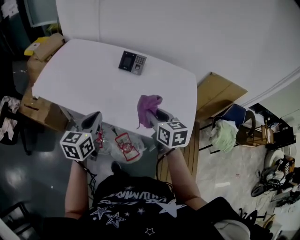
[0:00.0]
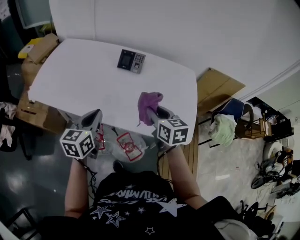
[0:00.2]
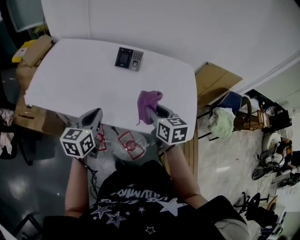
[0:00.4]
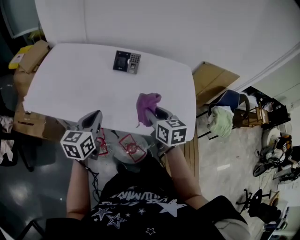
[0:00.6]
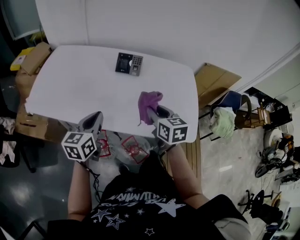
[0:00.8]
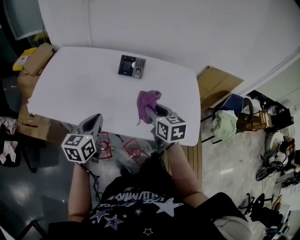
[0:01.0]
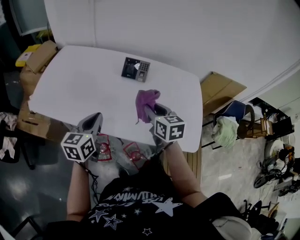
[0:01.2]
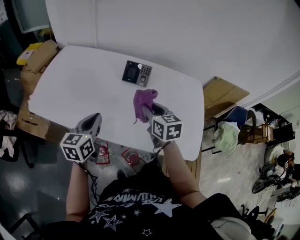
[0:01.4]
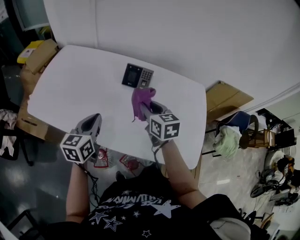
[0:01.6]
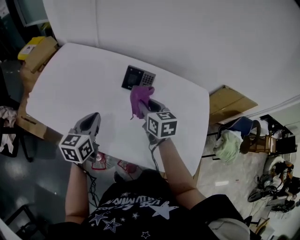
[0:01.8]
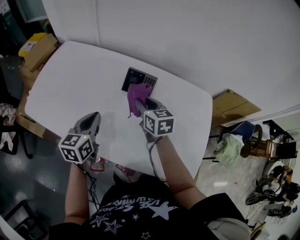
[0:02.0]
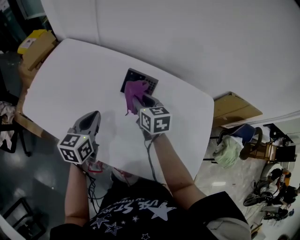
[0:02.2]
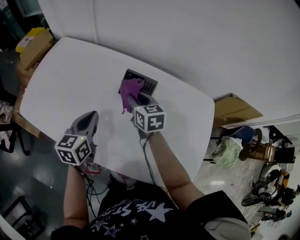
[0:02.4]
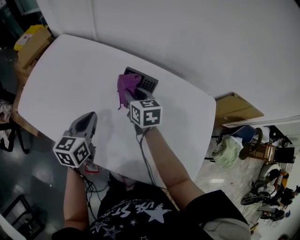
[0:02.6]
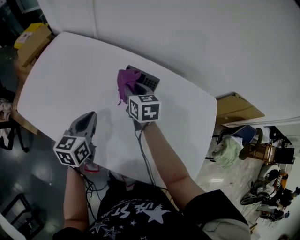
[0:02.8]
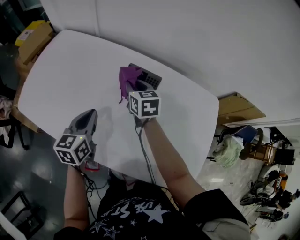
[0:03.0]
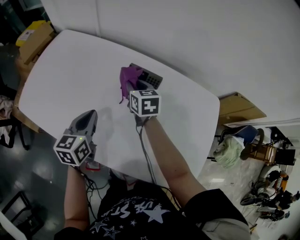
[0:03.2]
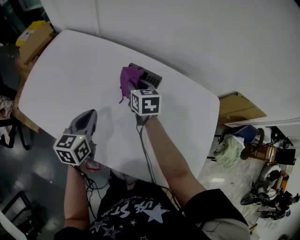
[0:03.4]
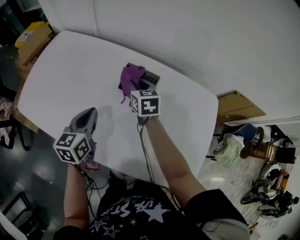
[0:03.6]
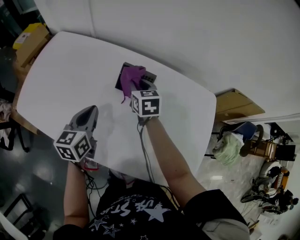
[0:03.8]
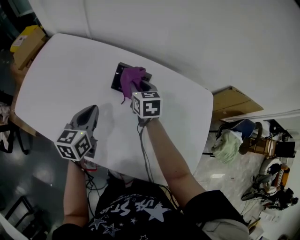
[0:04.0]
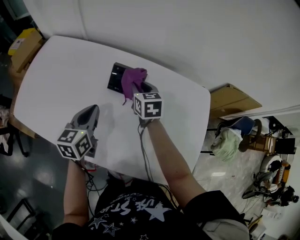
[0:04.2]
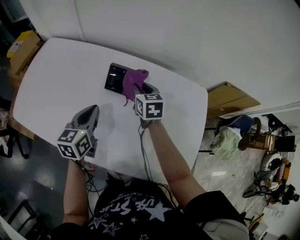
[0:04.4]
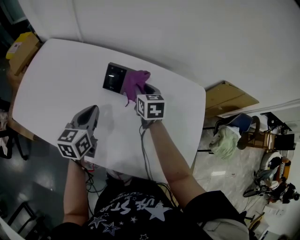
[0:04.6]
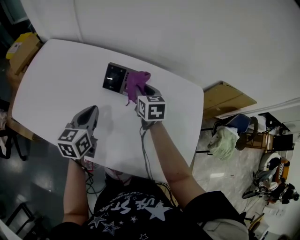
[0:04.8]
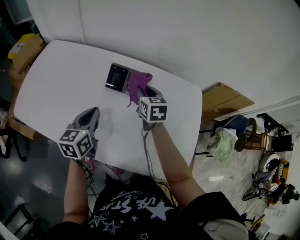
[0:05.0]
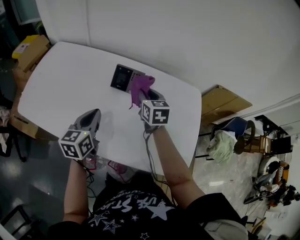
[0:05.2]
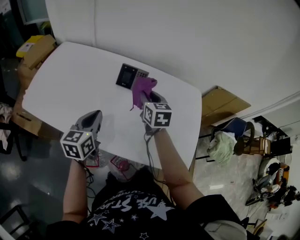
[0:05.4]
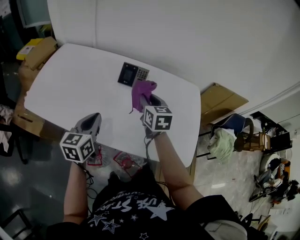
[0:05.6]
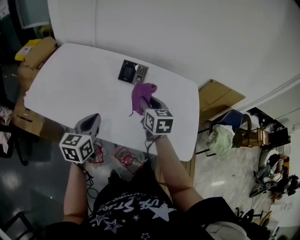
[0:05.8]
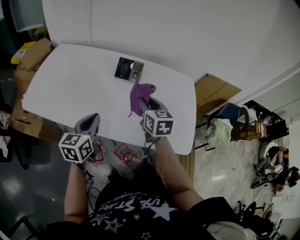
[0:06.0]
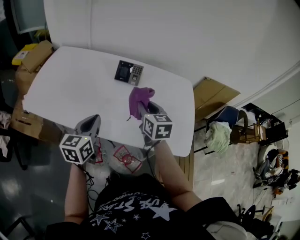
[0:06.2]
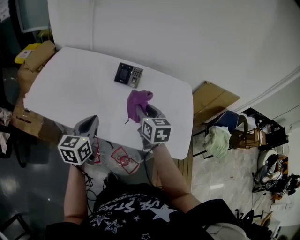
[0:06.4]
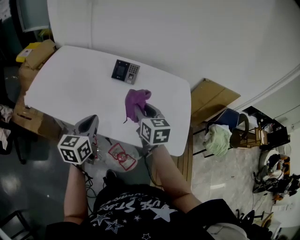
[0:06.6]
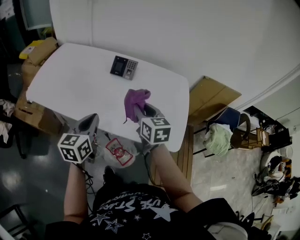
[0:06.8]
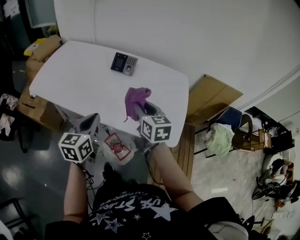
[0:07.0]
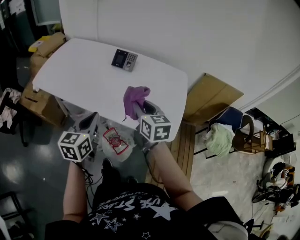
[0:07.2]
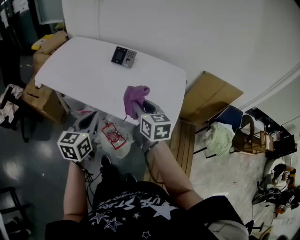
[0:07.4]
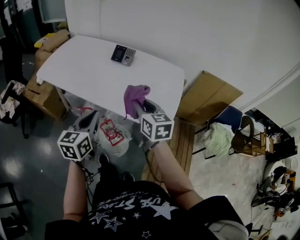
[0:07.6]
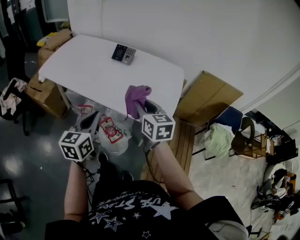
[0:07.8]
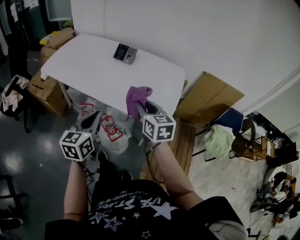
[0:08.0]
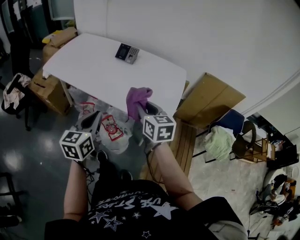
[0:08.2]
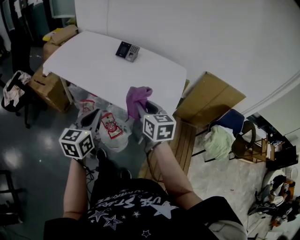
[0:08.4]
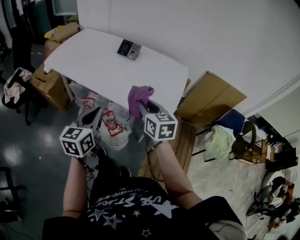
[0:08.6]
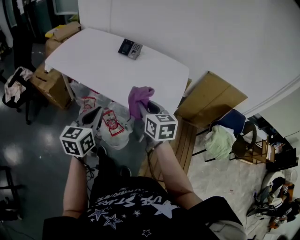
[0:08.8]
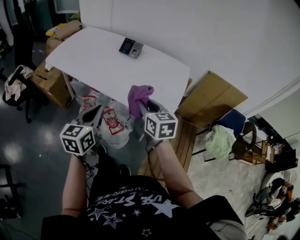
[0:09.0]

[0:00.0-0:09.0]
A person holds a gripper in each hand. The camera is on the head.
0:00.0 to 0:01.6: The right gripper travels forward and to the left by approximately 20 cm. The left gripper travels forward by about 15 cm.
0:01.6 to 0:03.0: The left gripper shifts about 10 cm forward and downward, while the right gripper is displaced forward and downward by approximately 20 cm.
0:03.0 to 0:04.4: The right gripper goes some 10 cm to the right. The left gripper travels to the right by about 5 cm.
0:04.4 to 0:06.0: The left gripper moves backward, about 20 cm. Meanwhile the right gripper shifts roughly 25 cm backward and upward.
0:06.0 to 0:07.6: Both grippers travel together backward and to the right, about 25 cm.
0:07.6 to 0:09.0: Both grippers move backward, about 5 cm.

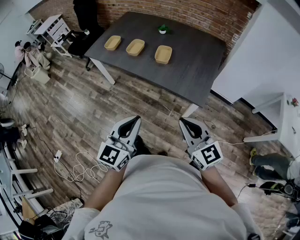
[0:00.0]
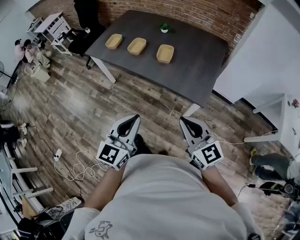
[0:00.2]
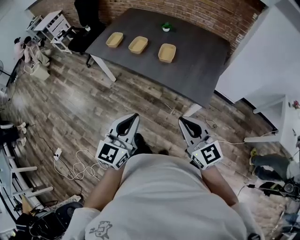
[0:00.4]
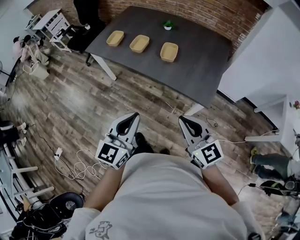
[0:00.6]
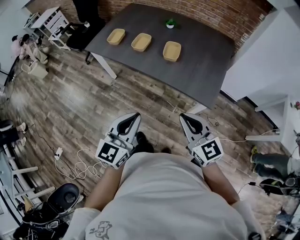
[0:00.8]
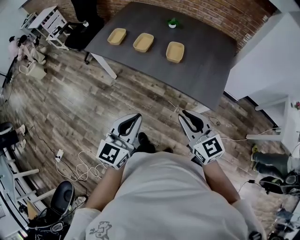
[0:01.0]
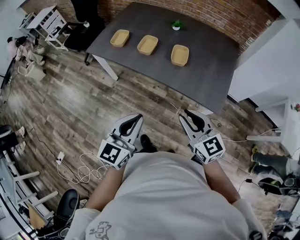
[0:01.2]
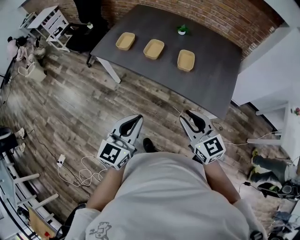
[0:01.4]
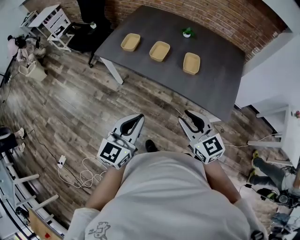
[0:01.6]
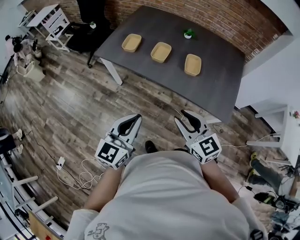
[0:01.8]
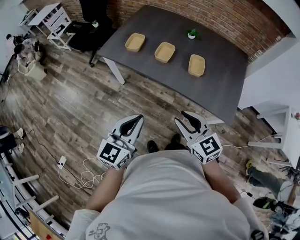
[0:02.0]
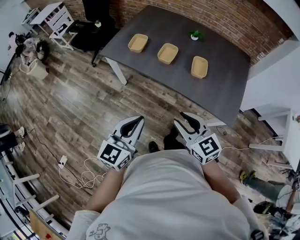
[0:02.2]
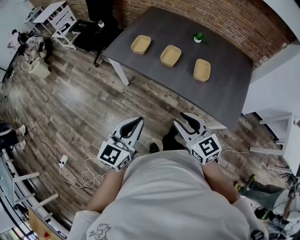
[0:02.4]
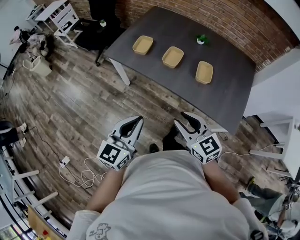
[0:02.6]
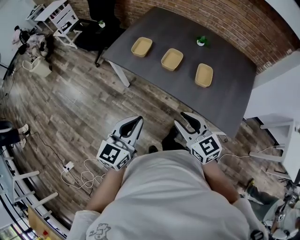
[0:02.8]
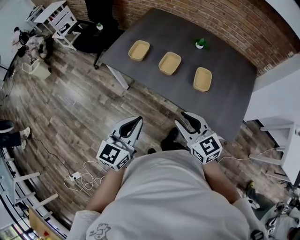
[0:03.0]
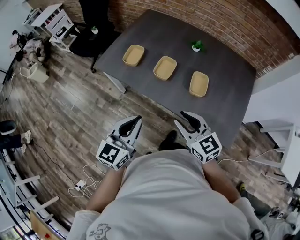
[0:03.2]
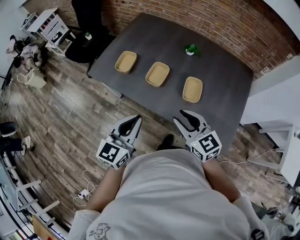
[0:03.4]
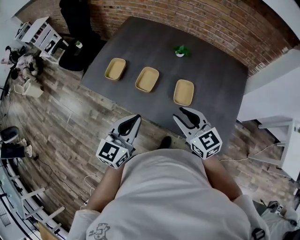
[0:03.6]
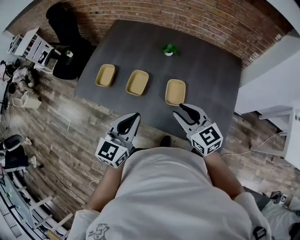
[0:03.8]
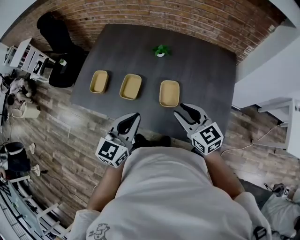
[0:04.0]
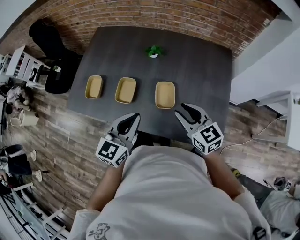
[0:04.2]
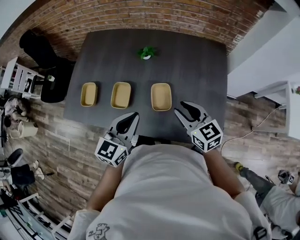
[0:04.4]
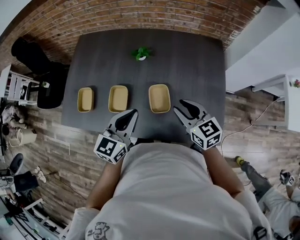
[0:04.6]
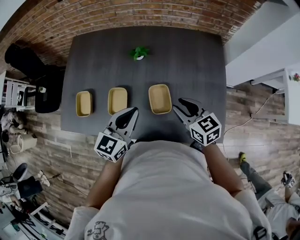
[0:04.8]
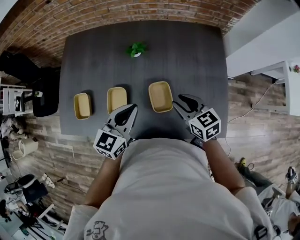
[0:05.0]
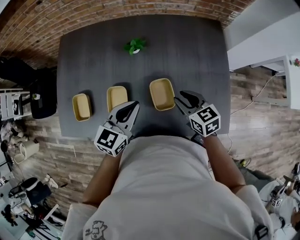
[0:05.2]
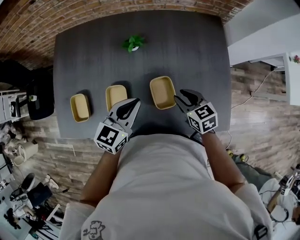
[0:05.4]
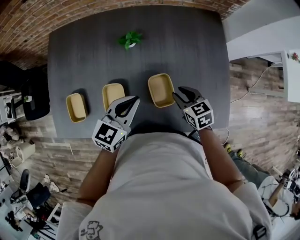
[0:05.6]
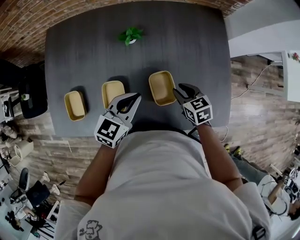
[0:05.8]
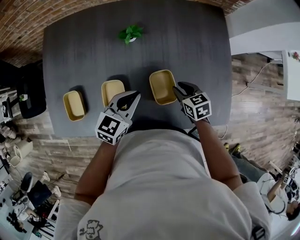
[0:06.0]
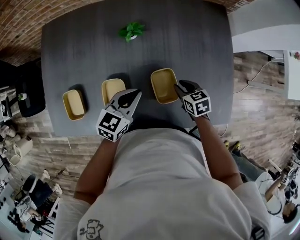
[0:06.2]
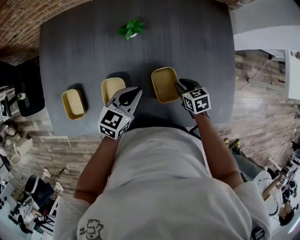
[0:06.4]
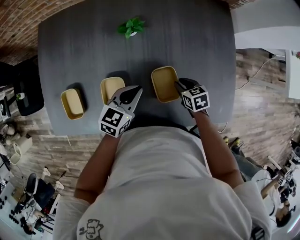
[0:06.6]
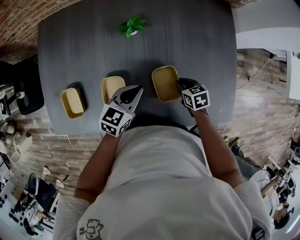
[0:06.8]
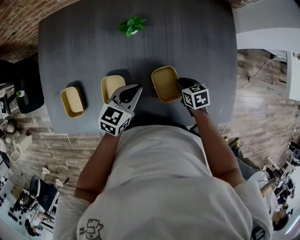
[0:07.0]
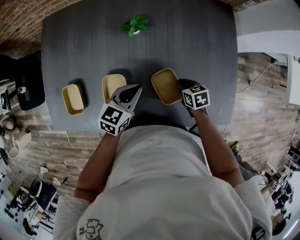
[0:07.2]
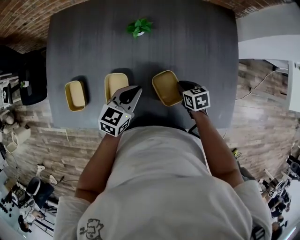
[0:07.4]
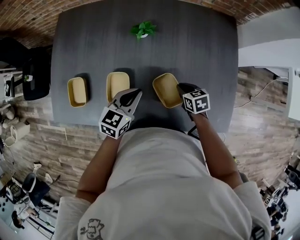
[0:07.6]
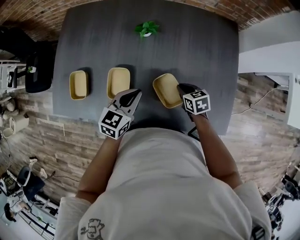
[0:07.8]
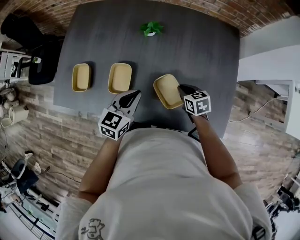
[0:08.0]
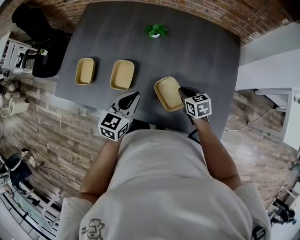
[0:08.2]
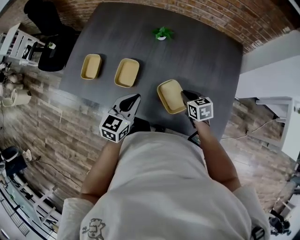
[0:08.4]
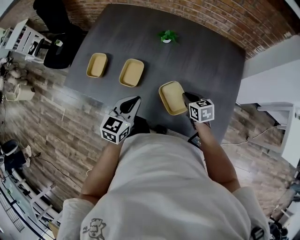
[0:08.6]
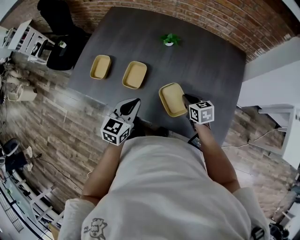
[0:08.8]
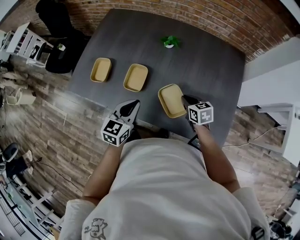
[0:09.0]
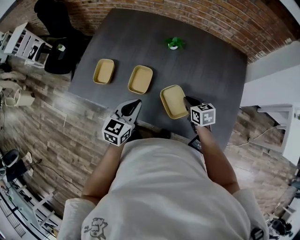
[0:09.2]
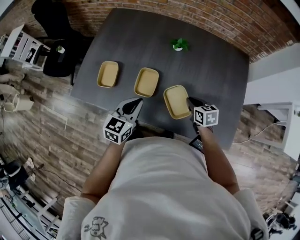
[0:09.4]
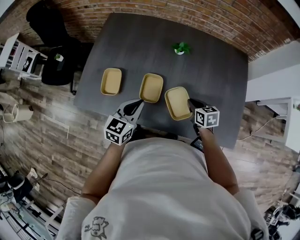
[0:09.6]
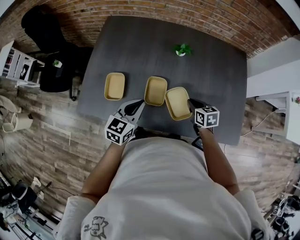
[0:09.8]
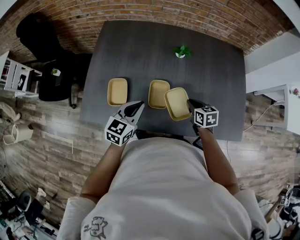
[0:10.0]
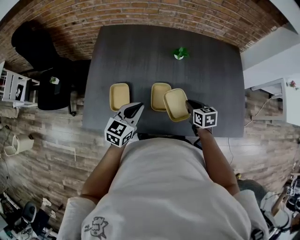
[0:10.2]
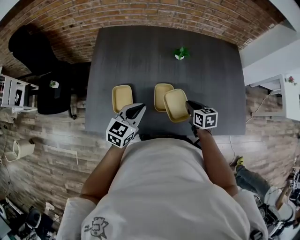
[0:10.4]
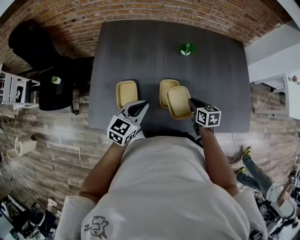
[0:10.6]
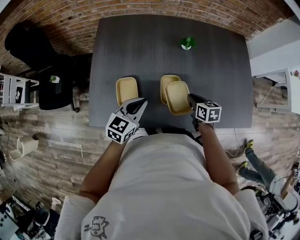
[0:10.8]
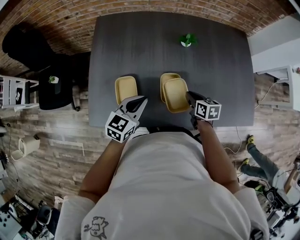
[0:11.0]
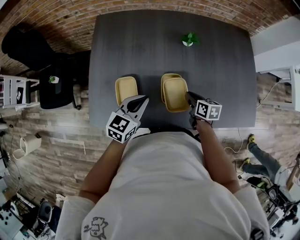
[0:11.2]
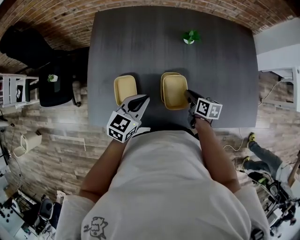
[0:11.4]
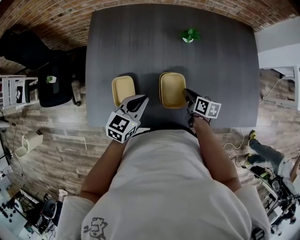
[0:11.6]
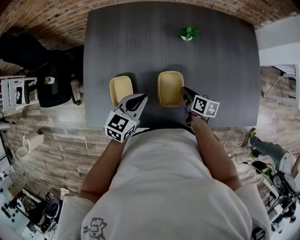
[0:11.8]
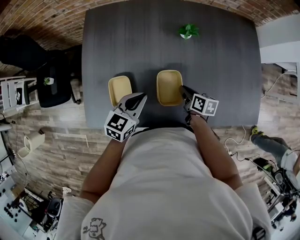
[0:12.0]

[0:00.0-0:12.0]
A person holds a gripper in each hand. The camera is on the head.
0:00.0 to 0:01.6: Both grippers move to the left and forward, roughly 25 cm. The right gripper opens up.
0:01.6 to 0:03.0: Both grippers move forward, about 10 cm.
0:03.0 to 0:04.4: The left gripper is displaced forward and to the right by approximately 30 cm, and changes its angle by approximately 20 degrees. The right gripper shifts some 30 cm to the right and forward, and swivels some 20 degrees.
0:04.4 to 0:06.0: The grippers both shift downward and forward by about 20 cm. The right gripper changes its angle by some 40 degrees, while the left gripper rotates some 30 degrees.
0:06.0 to 0:07.6: The right gripper closes its fingers.
0:07.6 to 0:09.0: The right gripper shifts about 10 cm upward, while the left gripper heads backward, upward and to the left, covering approximately 15 cm, and turns by roughly 20 degrees.
0:09.0 to 0:10.4: The right gripper shifts by approximately 15 cm, and rotates about 20 degrees. Meanwhile the left gripper moves approximately 20 cm, and changes its angle by some 30 degrees.
0:10.4 to 0:12.0: Both grippers travel together downward, about 5 cm. The right gripper turns by approximately 30 degrees.

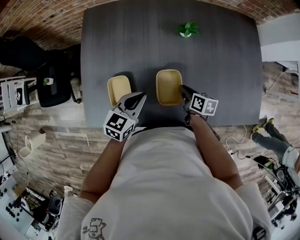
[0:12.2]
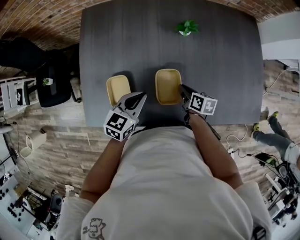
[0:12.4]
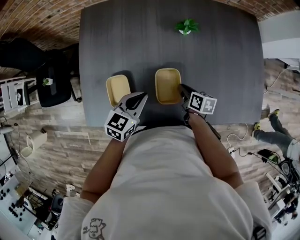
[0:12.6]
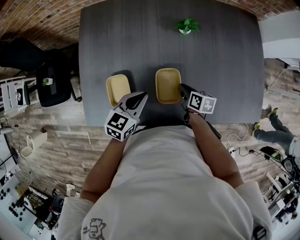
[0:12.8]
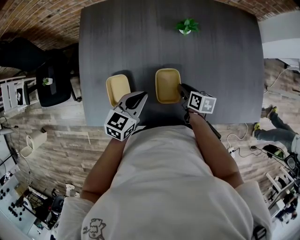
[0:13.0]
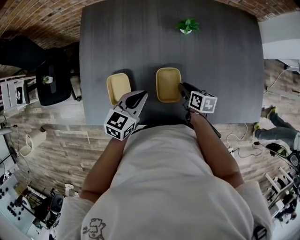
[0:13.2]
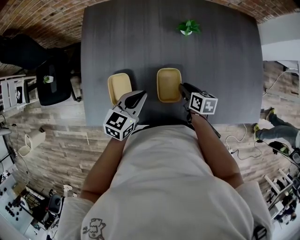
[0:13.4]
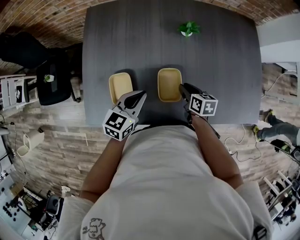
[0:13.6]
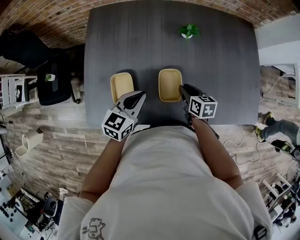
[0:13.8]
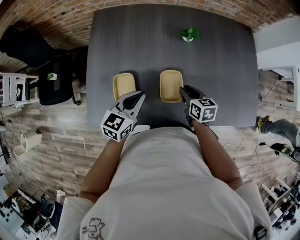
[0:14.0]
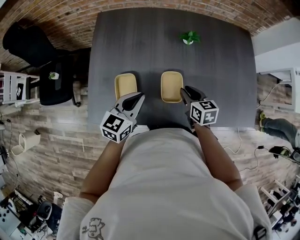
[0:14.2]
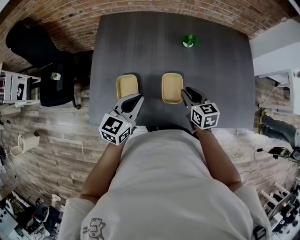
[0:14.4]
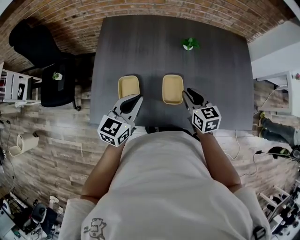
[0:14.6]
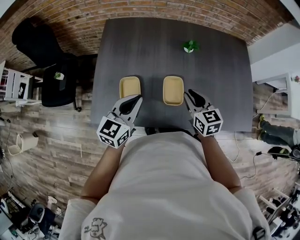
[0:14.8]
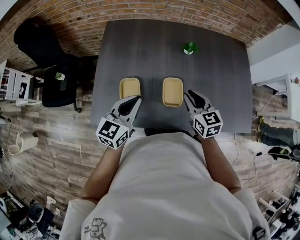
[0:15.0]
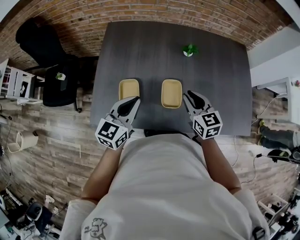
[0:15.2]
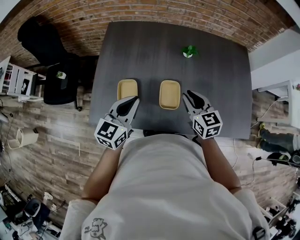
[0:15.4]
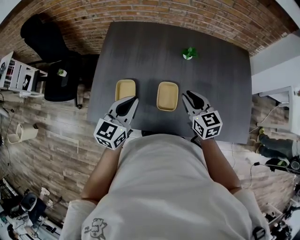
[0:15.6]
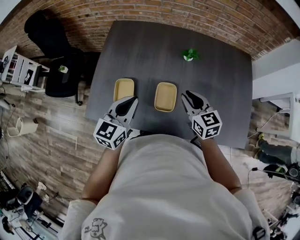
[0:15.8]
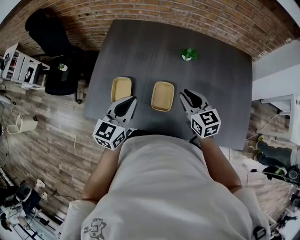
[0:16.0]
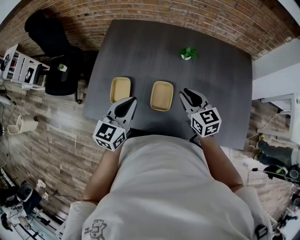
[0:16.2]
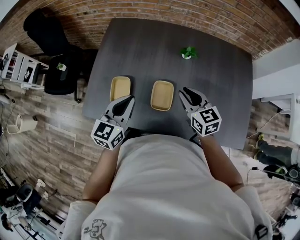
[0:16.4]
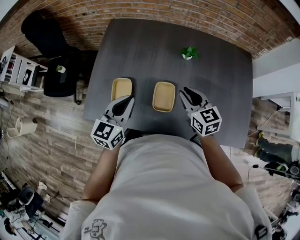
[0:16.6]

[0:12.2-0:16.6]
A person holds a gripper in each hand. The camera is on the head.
0:12.2 to 0:13.6: The grippers move only a little.
0:13.6 to 0:15.2: The right gripper heads upward, covering about 20 cm, and turns by some 40 degrees. The left gripper heads upward and backward, covering approximately 10 cm.
0:15.2 to 0:16.6: There are only small adjustments of the grippers.
